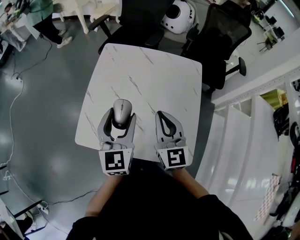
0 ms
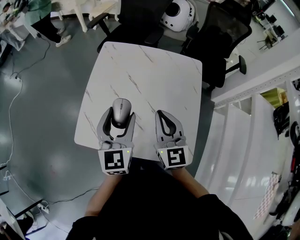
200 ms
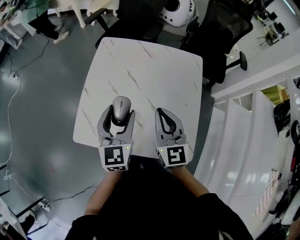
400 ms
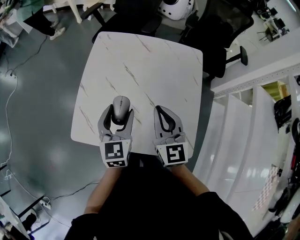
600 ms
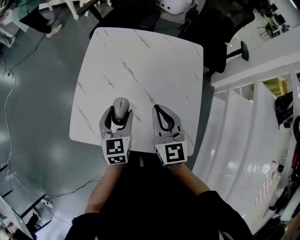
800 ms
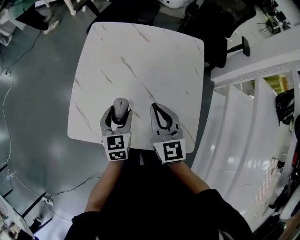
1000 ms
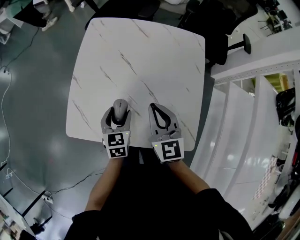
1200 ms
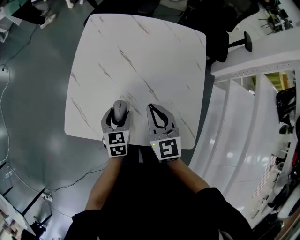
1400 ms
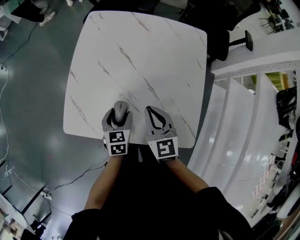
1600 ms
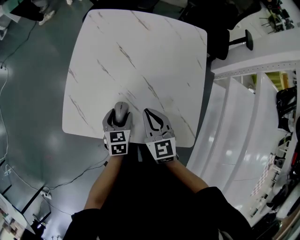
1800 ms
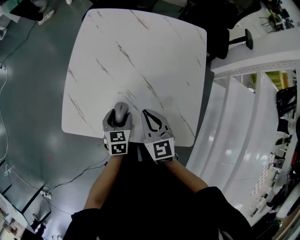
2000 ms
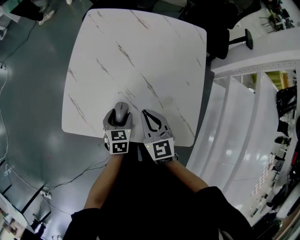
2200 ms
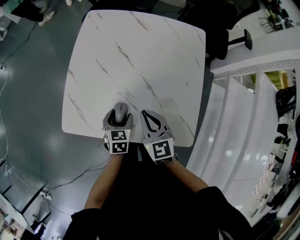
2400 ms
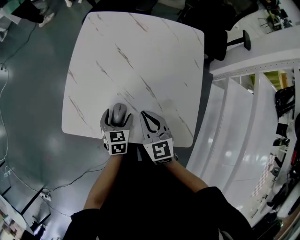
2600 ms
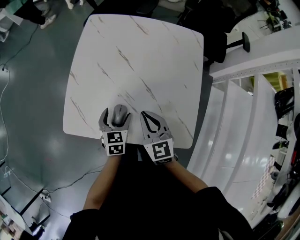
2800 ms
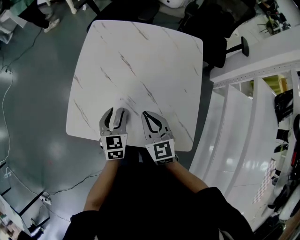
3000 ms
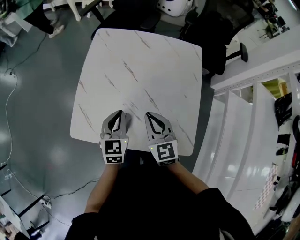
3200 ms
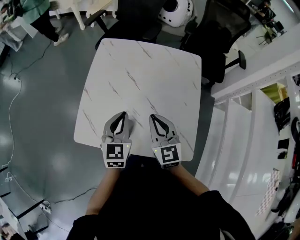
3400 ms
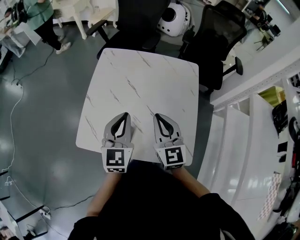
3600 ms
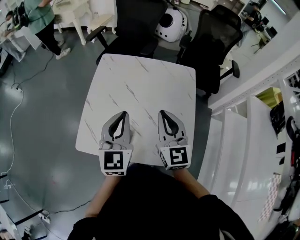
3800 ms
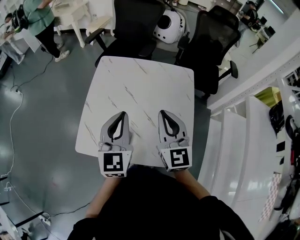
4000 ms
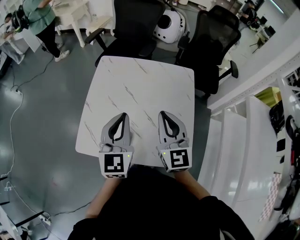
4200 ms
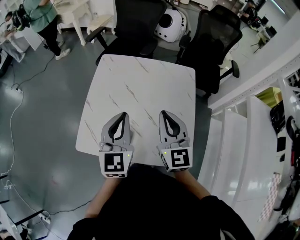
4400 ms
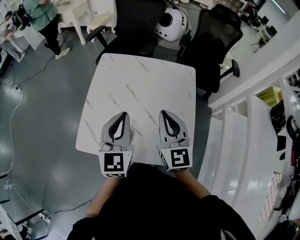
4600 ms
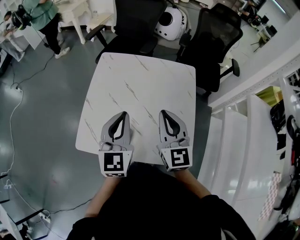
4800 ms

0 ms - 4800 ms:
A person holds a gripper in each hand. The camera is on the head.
0 ms - 1600 ms: The right gripper moves downward, about 15 cm. Meanwhile the left gripper travels downward by approximately 25 cm, and points its fingers about 30 degrees further downward.
1600 ms - 3200 ms: The left gripper moves upward, about 10 cm, and closes.
3200 ms - 4800 ms: Both grippers travel together upward, approximately 15 cm.

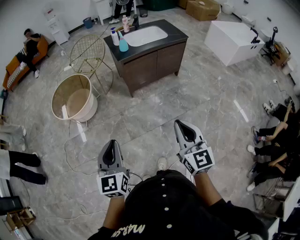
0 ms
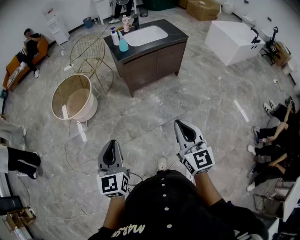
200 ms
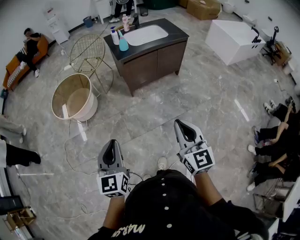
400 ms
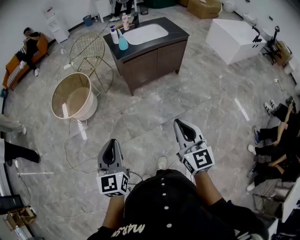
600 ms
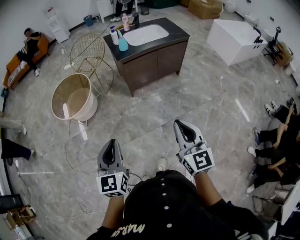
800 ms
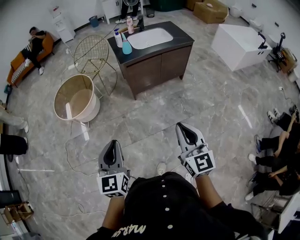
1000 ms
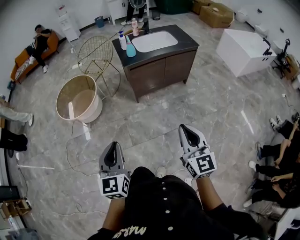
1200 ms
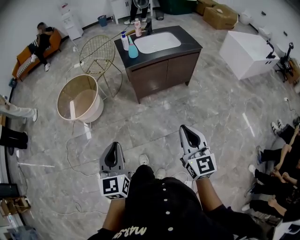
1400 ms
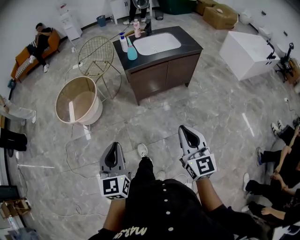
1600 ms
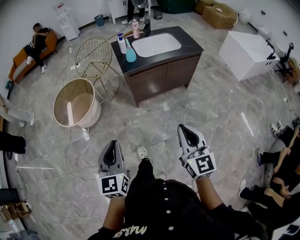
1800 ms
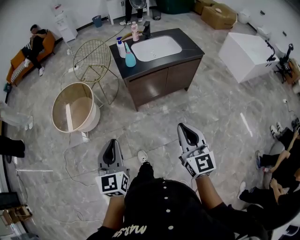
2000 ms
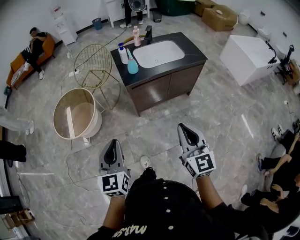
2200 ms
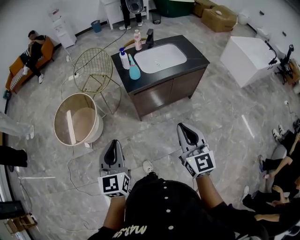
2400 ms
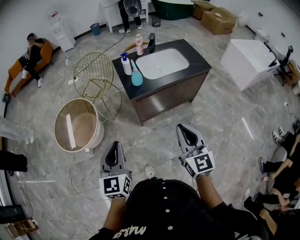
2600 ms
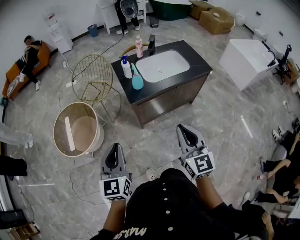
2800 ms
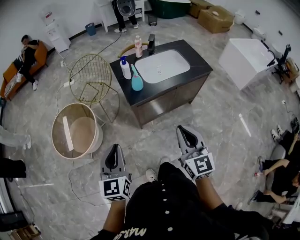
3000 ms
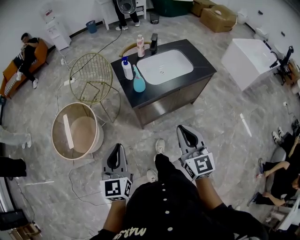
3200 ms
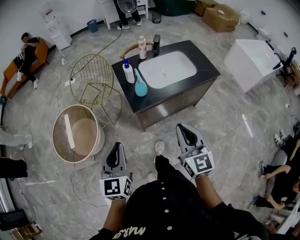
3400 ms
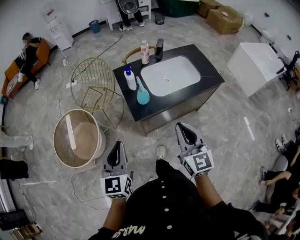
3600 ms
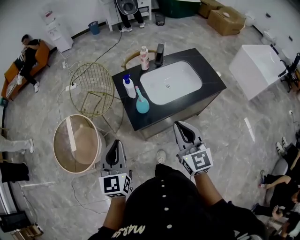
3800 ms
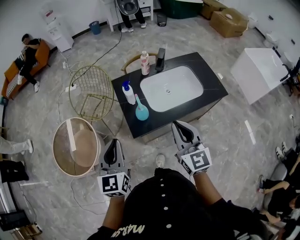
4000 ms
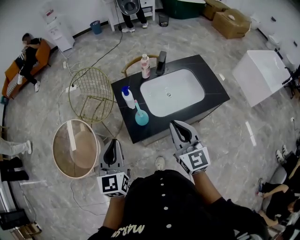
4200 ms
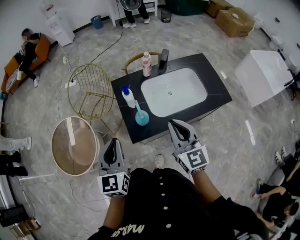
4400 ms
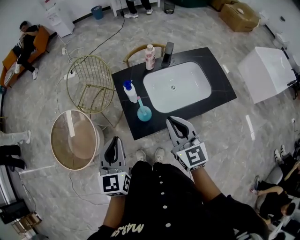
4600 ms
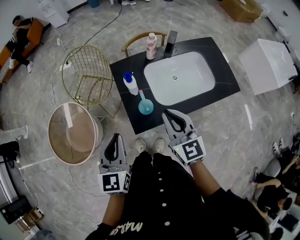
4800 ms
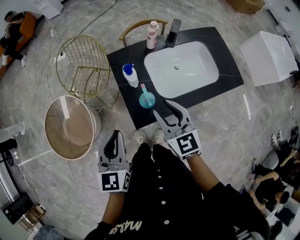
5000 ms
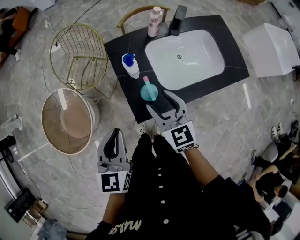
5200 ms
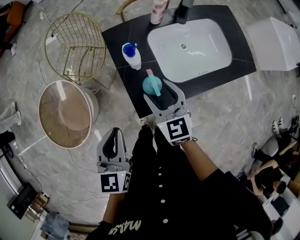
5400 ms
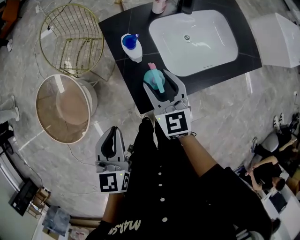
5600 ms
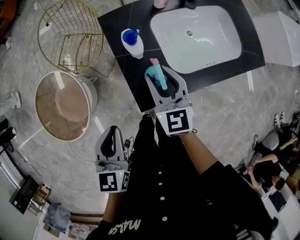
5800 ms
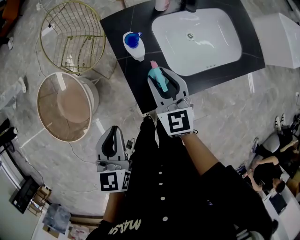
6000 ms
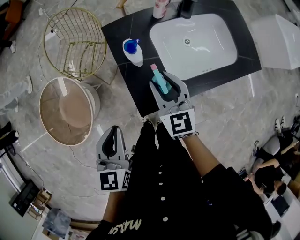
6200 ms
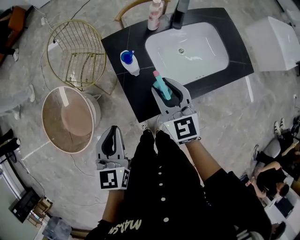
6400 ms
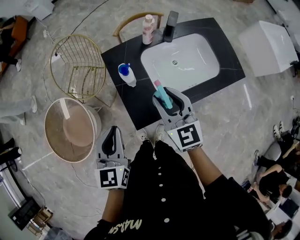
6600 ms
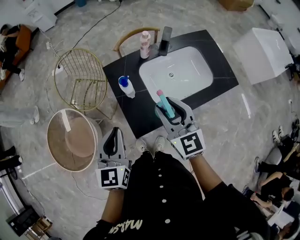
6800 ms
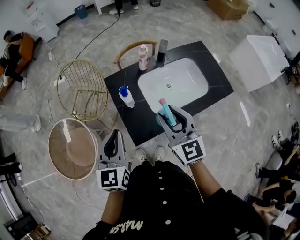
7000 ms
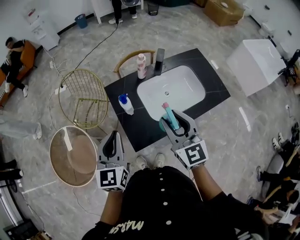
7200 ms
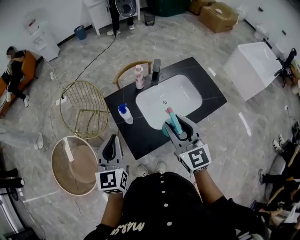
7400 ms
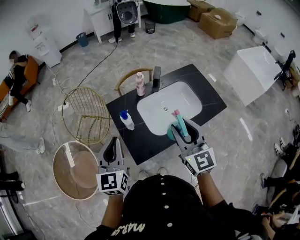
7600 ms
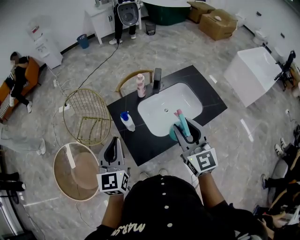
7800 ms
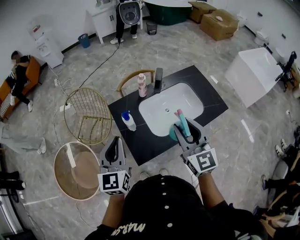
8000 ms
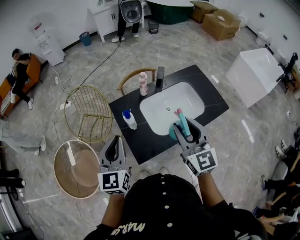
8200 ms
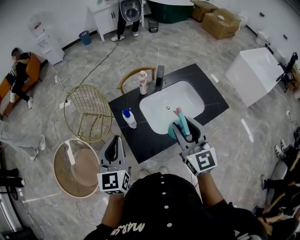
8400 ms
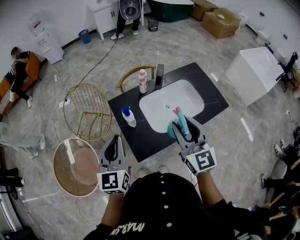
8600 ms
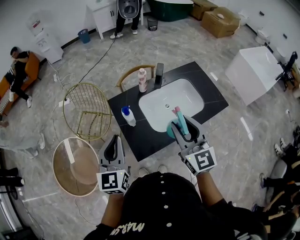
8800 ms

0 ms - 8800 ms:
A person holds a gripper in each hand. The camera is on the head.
0 ms - 1400 ms: The right gripper heads forward and to the right, covering about 10 cm. The left gripper heads forward, covering some 5 cm.
1400 ms - 3000 ms: The grippers both shift forward by some 35 cm.
3000 ms - 4400 ms: Both grippers travel together forward, about 30 cm.
4400 ms - 5800 ms: The right gripper is displaced downward, forward and to the left by roughly 25 cm, and opens its fingers, while the left gripper shifts about 15 cm downward, and turns by approximately 20 degrees.
5800 ms - 7400 ms: The right gripper travels upward and to the right by approximately 25 cm. Meanwhile the left gripper shifts approximately 20 cm upward, forward and to the right, and changes its angle by roughly 20 degrees.
7400 ms - 8800 ms: The grippers stay close to where they were, moving slightly.

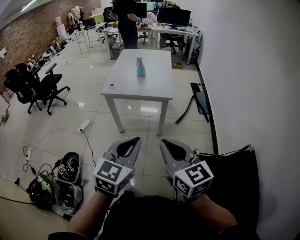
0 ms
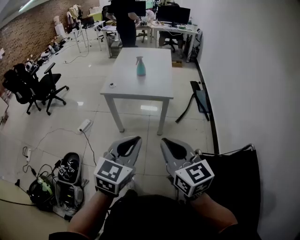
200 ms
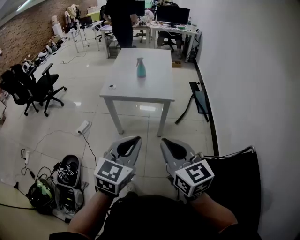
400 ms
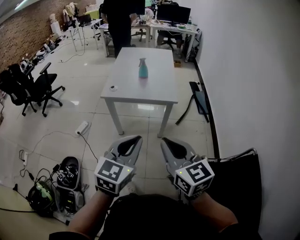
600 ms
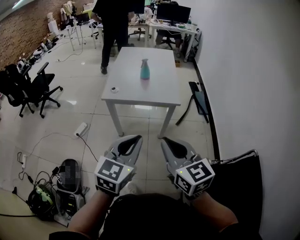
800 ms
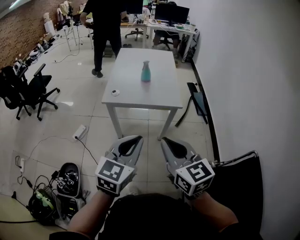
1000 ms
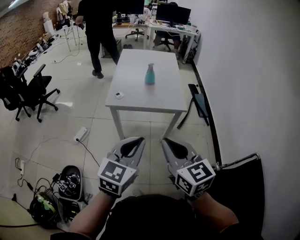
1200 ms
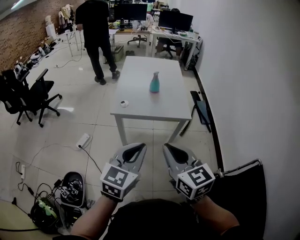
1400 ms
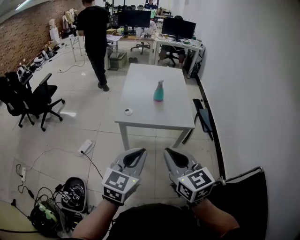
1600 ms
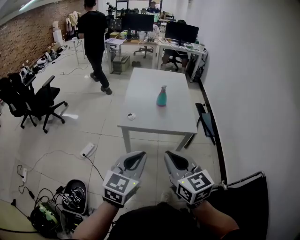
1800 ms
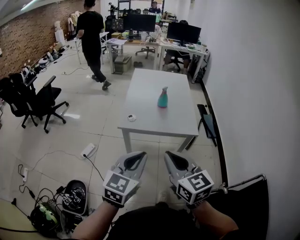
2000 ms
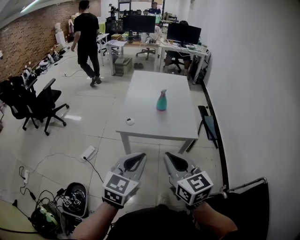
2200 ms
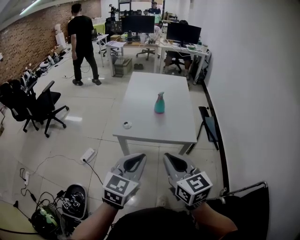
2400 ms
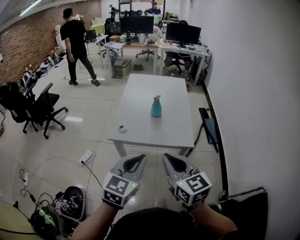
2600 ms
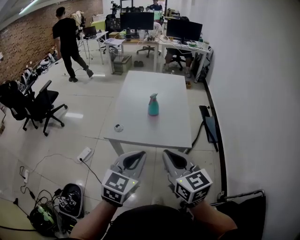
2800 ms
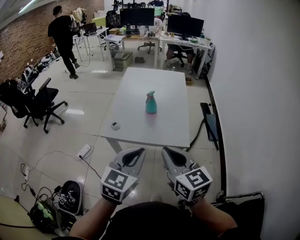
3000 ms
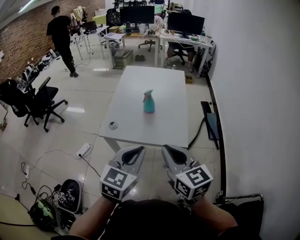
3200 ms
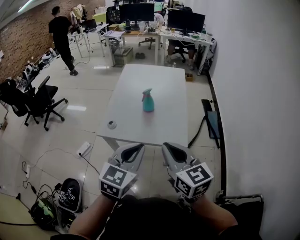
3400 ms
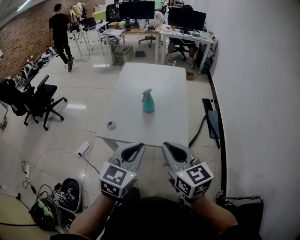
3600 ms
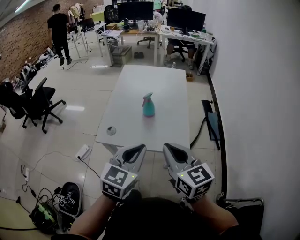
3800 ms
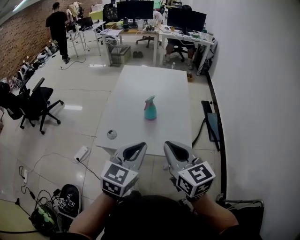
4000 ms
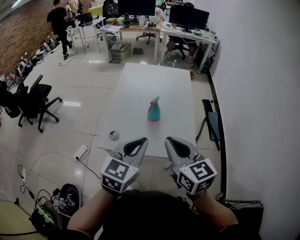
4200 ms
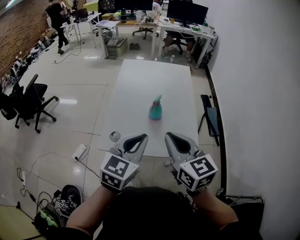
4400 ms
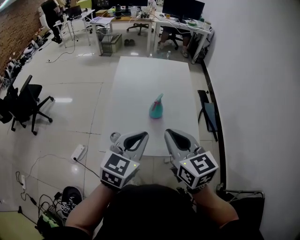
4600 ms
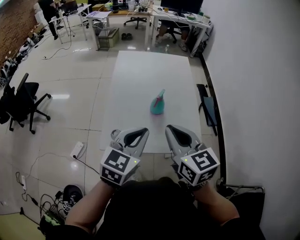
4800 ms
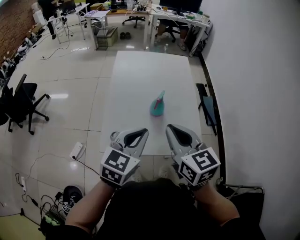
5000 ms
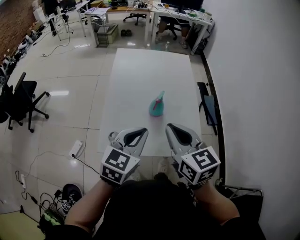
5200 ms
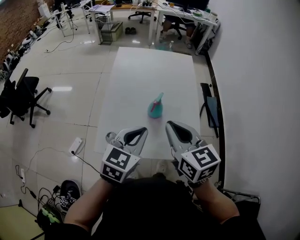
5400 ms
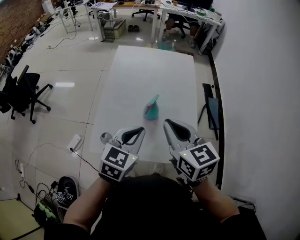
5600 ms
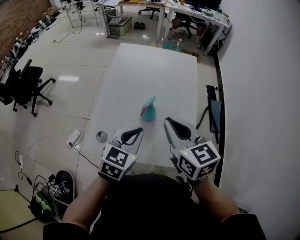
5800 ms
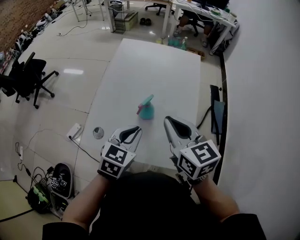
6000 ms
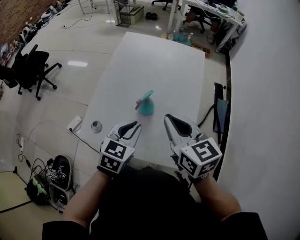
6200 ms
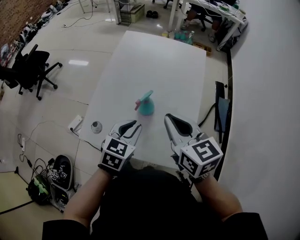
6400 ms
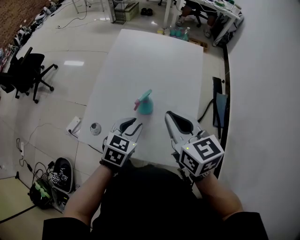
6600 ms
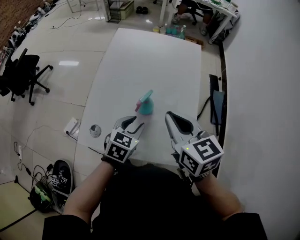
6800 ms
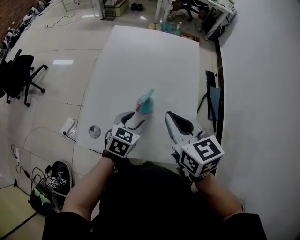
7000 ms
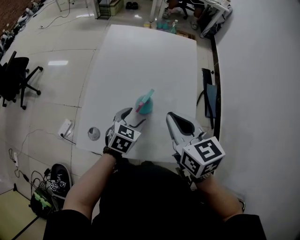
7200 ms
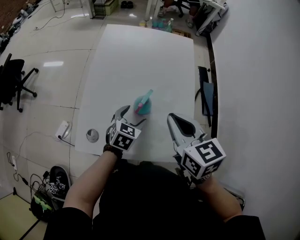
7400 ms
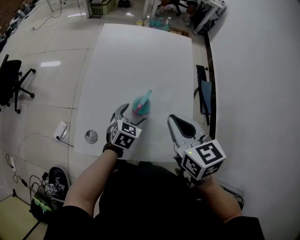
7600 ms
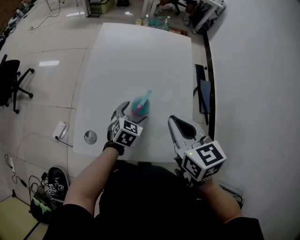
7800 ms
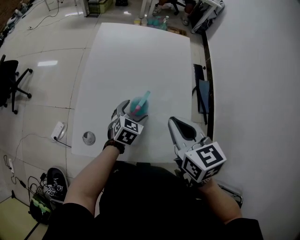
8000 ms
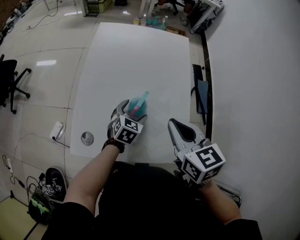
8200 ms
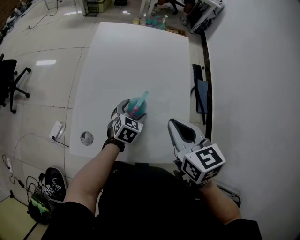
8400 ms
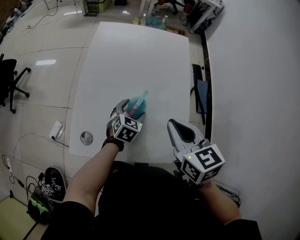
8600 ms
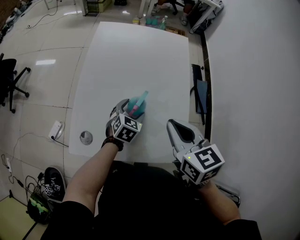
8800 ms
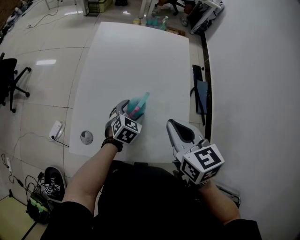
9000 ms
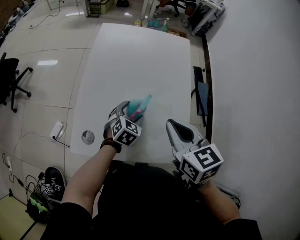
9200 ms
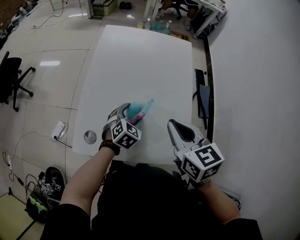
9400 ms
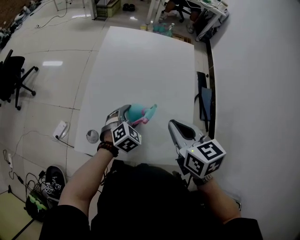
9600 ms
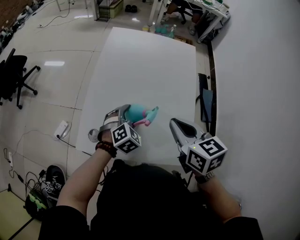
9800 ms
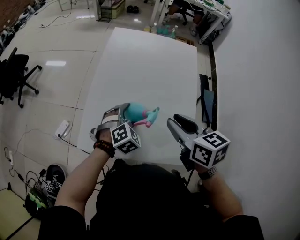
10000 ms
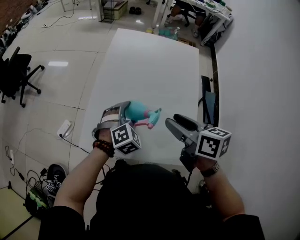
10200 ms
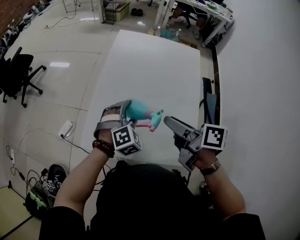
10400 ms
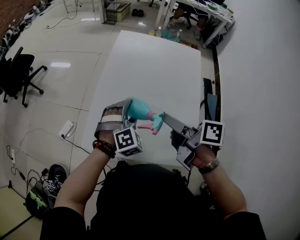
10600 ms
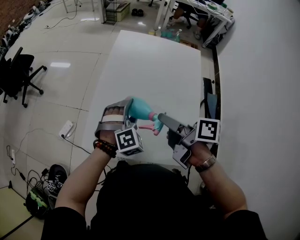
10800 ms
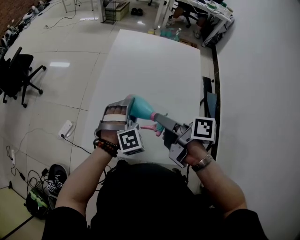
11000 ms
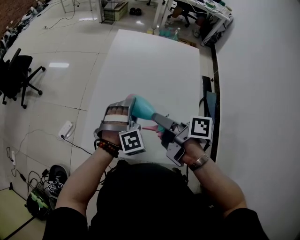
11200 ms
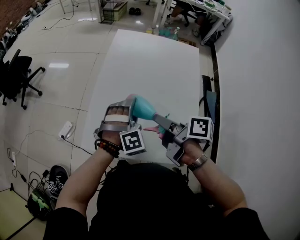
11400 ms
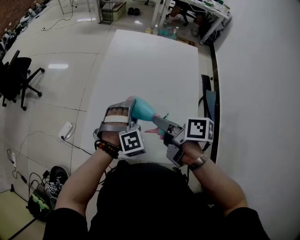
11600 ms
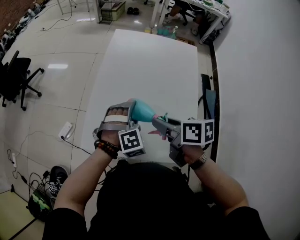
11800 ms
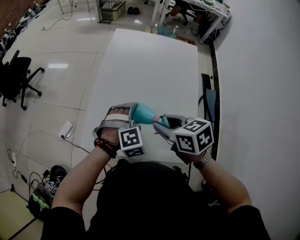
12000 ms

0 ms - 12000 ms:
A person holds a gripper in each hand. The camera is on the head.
0 ms - 1600 ms: Both grippers move to the left and forward, about 25 cm.
1600 ms - 3000 ms: The two grippers go about 20 cm forward and to the right.
3000 ms - 4400 ms: The grippers both shift forward by about 15 cm.
4400 ms - 6000 ms: The left gripper heads forward and downward, covering about 15 cm; the right gripper moves forward, approximately 15 cm.
6000 ms - 7600 ms: The left gripper moves downward and forward, approximately 15 cm, and opens.
7600 ms - 9000 ms: There are only small adjustments of the grippers.
9000 ms - 10400 ms: The left gripper travels upward and to the left by approximately 10 cm, and rotates about 40 degrees. The right gripper rolls clockwise, seen from behind, by approximately 40 degrees, and opens its fingers.
10400 ms - 12000 ms: The right gripper goes some 5 cm downward, rotates some 40 degrees, and closes.
